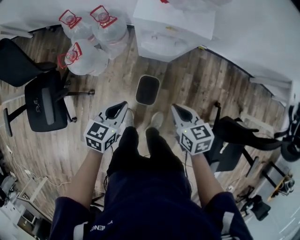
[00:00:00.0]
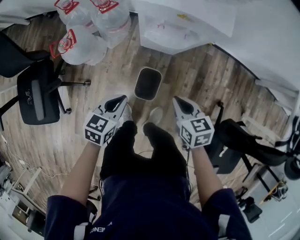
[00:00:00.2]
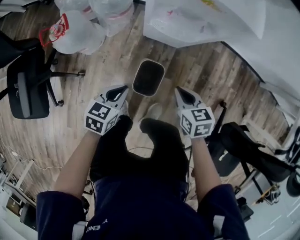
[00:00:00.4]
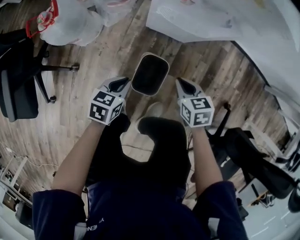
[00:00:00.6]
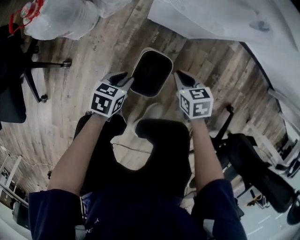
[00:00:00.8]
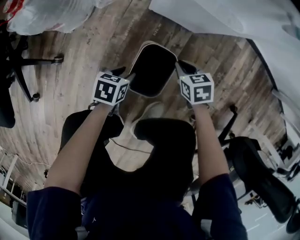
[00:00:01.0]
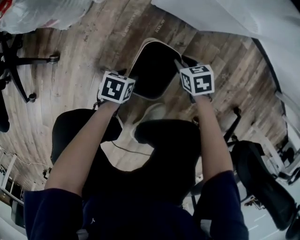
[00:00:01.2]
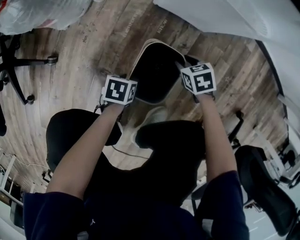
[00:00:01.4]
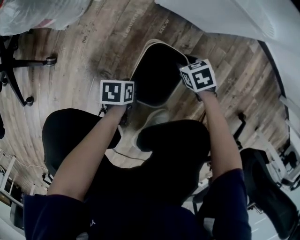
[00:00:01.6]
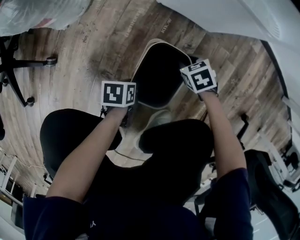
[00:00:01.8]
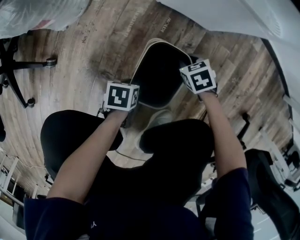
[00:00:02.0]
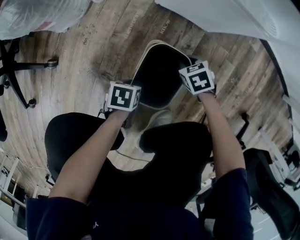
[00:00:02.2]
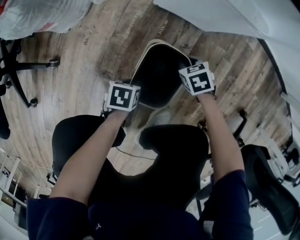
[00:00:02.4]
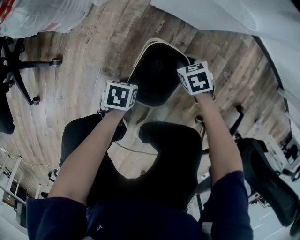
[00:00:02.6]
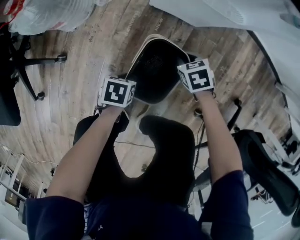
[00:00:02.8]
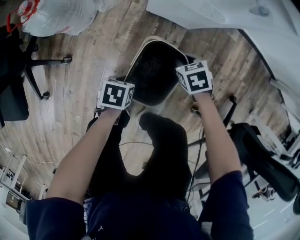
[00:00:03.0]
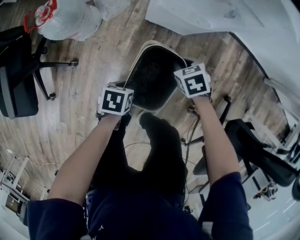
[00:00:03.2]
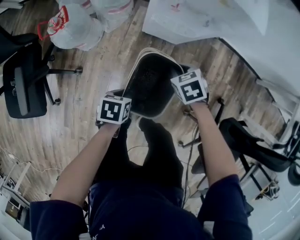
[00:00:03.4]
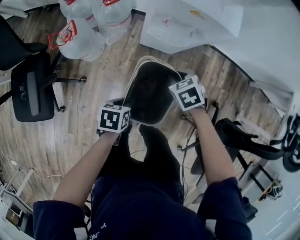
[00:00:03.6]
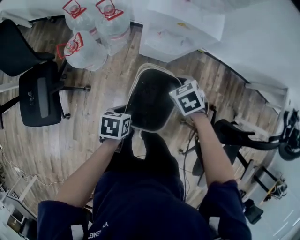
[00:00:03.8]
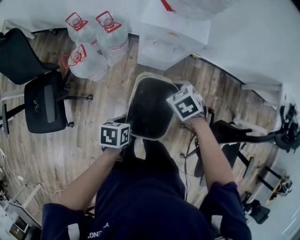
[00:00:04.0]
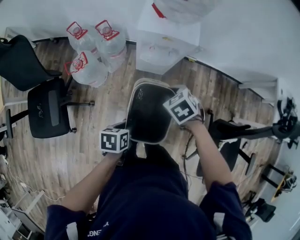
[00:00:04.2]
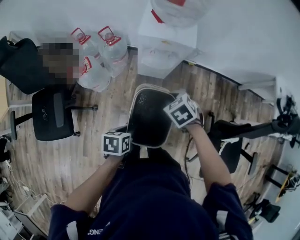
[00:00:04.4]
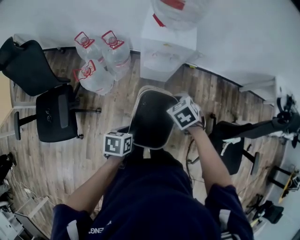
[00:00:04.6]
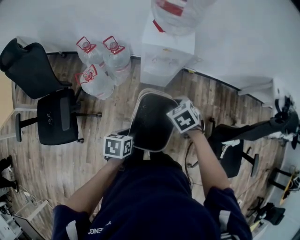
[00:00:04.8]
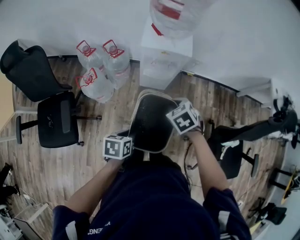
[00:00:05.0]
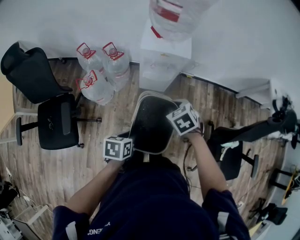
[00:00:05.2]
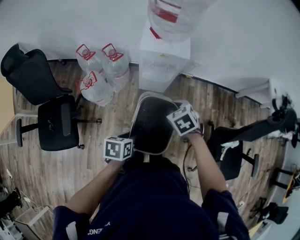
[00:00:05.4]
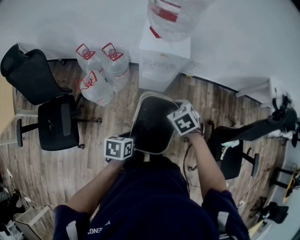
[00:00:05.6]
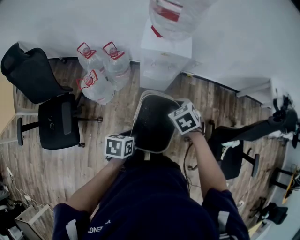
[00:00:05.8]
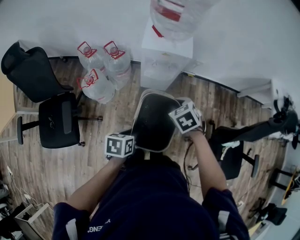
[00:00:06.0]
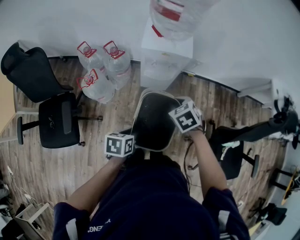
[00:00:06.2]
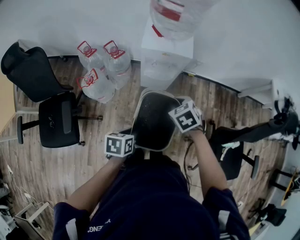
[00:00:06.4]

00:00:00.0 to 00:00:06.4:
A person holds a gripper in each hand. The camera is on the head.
00:00:00.0 to 00:00:01.6: The grippers both shift downward by approximately 60 cm. The right gripper swivels about 40 degrees, and opens up; the left gripper changes its angle by roughly 50 degrees, and opens up.
00:00:01.6 to 00:00:03.2: The grippers both shift upward by about 30 cm. The left gripper closes, while the right gripper closes.
00:00:03.2 to 00:00:04.8: The two grippers go some 40 cm upward.
00:00:04.8 to 00:00:06.4: There are only small adjustments of the grippers.

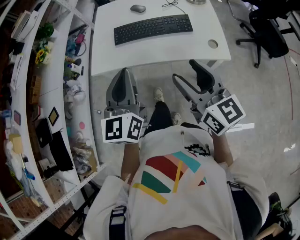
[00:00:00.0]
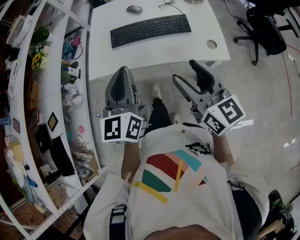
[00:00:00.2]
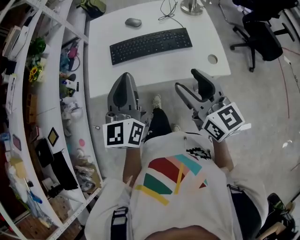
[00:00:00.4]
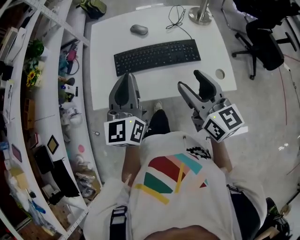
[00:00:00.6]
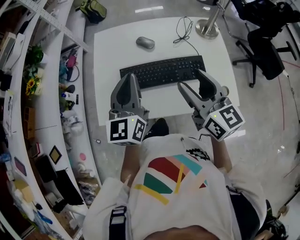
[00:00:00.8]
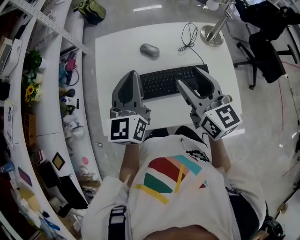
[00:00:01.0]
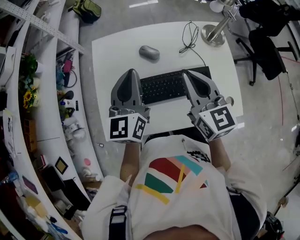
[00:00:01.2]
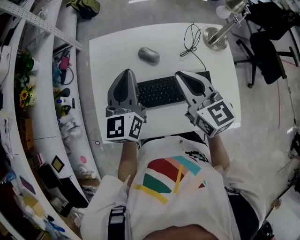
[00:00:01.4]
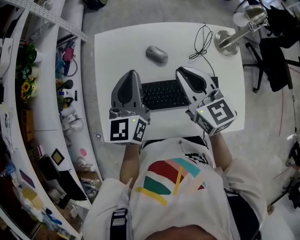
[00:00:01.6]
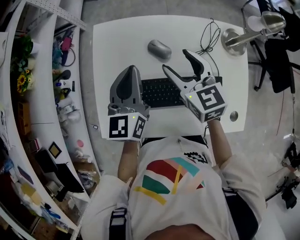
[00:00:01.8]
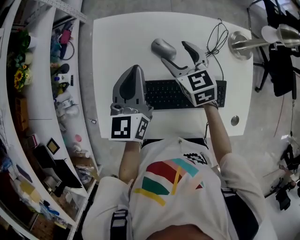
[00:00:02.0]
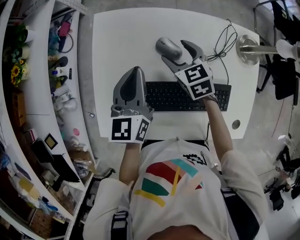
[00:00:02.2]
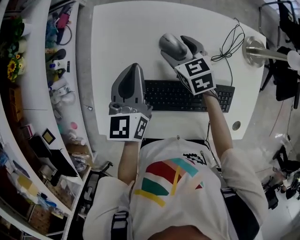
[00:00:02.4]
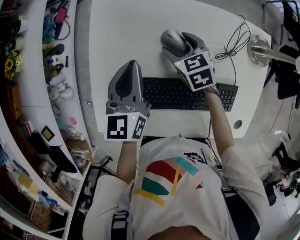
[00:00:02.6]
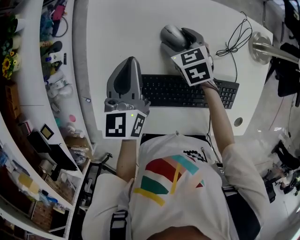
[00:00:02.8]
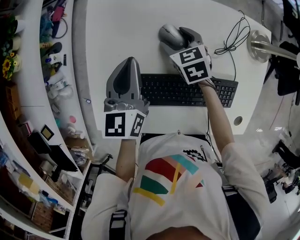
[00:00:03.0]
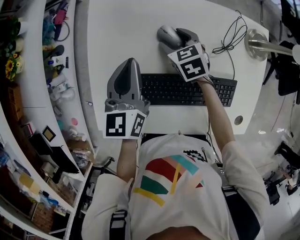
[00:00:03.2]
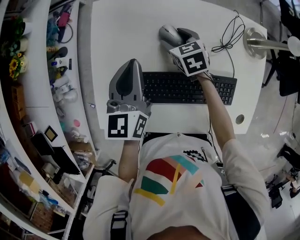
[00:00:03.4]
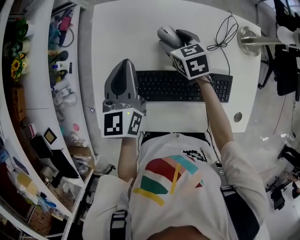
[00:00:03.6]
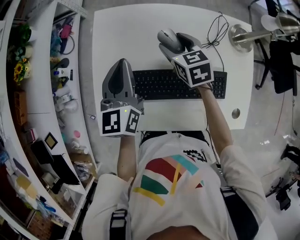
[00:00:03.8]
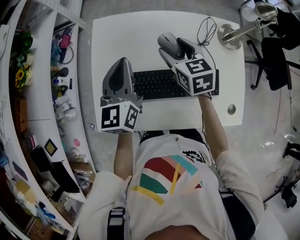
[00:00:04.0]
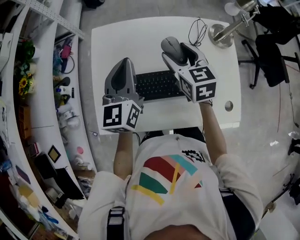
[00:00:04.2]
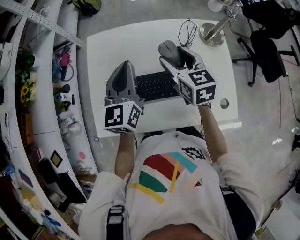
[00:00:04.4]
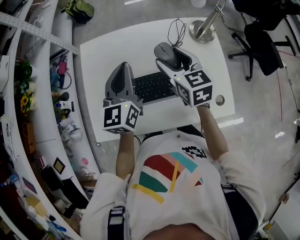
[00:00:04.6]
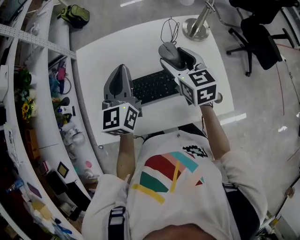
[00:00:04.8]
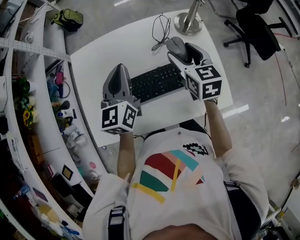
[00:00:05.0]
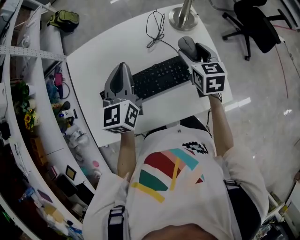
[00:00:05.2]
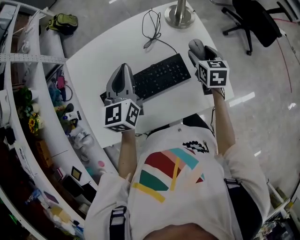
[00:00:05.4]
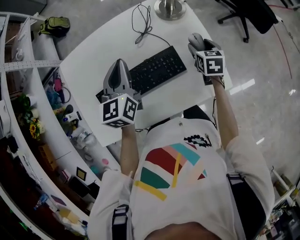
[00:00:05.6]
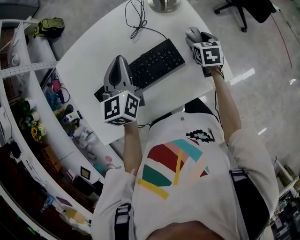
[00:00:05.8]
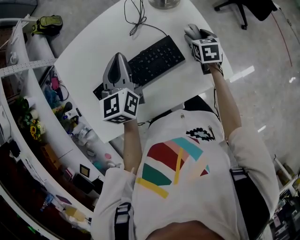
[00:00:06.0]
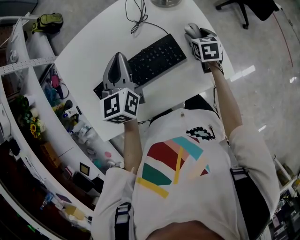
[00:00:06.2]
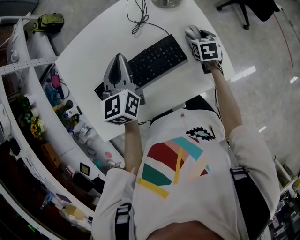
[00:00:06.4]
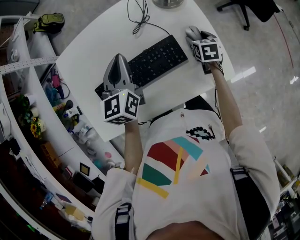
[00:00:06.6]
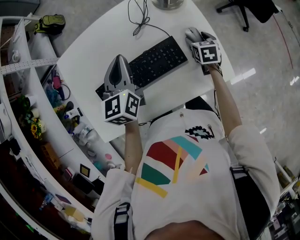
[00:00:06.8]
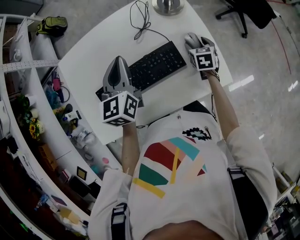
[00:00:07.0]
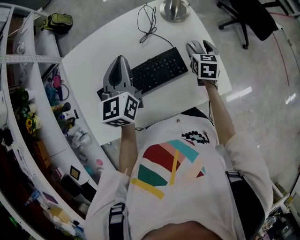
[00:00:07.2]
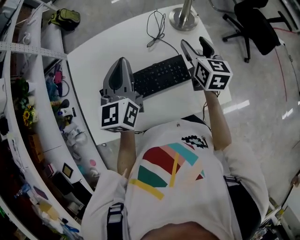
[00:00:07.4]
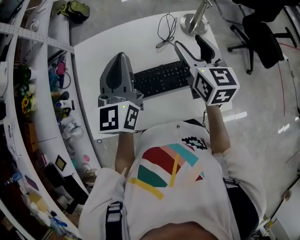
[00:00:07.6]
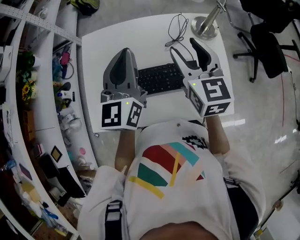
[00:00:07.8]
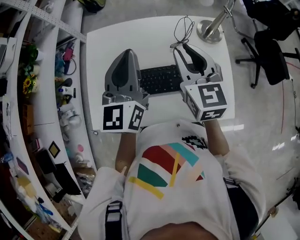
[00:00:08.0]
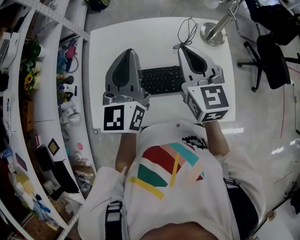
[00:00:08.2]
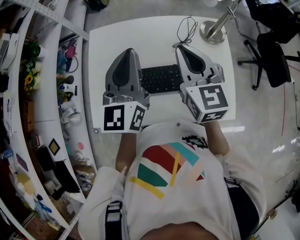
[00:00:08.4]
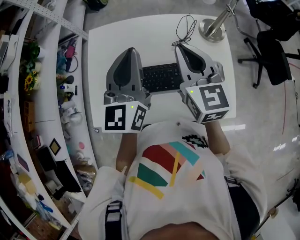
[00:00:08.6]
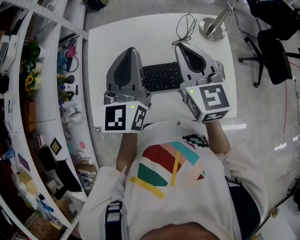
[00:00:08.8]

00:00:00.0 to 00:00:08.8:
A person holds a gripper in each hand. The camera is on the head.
00:00:00.0 to 00:00:01.4: The pair of grippers is taken forward, some 40 cm. The right gripper closes.
00:00:01.4 to 00:00:03.0: The left gripper goes roughly 15 cm downward and forward, while the right gripper moves downward and forward, approximately 35 cm, angles its fingers downward, by roughly 30 degrees, and opens up.
00:00:03.0 to 00:00:04.4: The right gripper shifts approximately 25 cm upward and backward, and swivels about 30 degrees. The left gripper heads upward, backward and to the right, covering approximately 15 cm.
00:00:04.4 to 00:00:05.8: The left gripper travels to the right by some 15 cm; the right gripper heads to the right and downward, covering approximately 35 cm, and swivels some 40 degrees.
00:00:05.8 to 00:00:07.4: The right gripper goes roughly 20 cm upward and to the left, and turns by about 30 degrees; the left gripper travels upward by approximately 5 cm.
00:00:07.4 to 00:00:08.8: The right gripper goes about 20 cm to the left and upward, rotates some 30 degrees, and closes its fingers. The left gripper travels upward and to the left by roughly 10 cm.

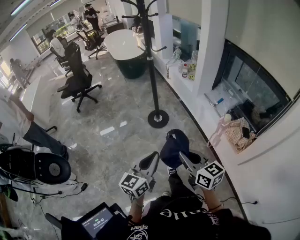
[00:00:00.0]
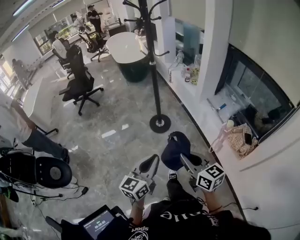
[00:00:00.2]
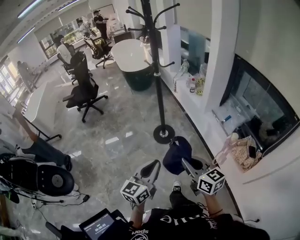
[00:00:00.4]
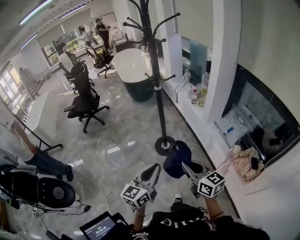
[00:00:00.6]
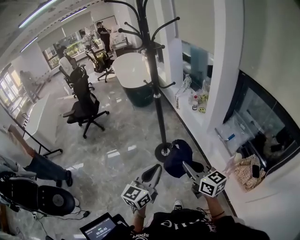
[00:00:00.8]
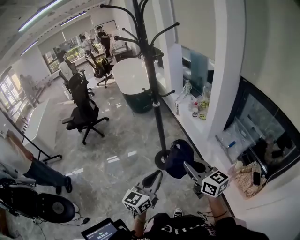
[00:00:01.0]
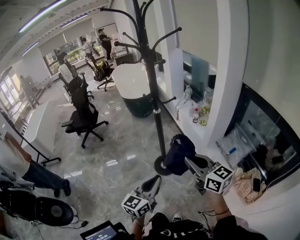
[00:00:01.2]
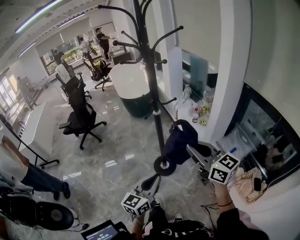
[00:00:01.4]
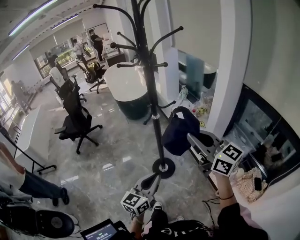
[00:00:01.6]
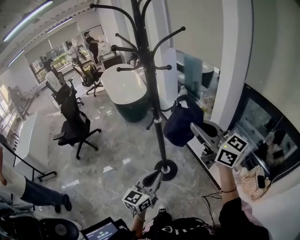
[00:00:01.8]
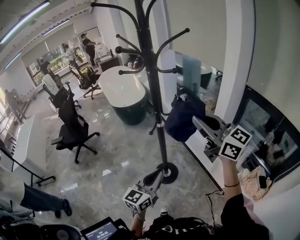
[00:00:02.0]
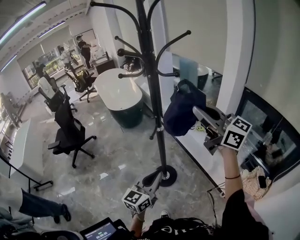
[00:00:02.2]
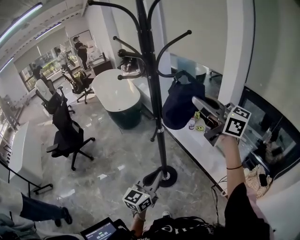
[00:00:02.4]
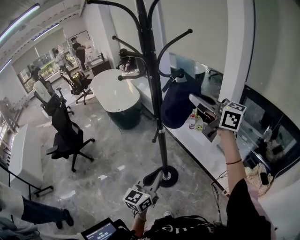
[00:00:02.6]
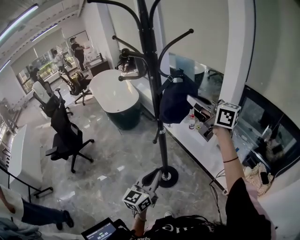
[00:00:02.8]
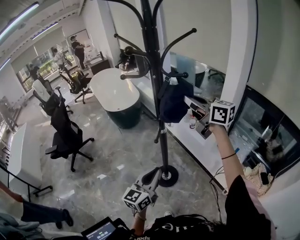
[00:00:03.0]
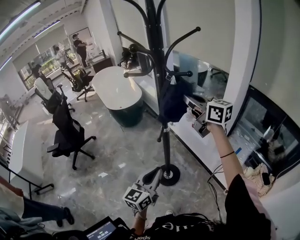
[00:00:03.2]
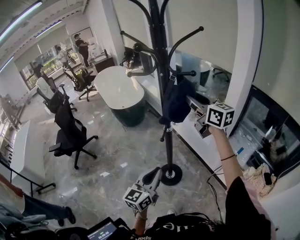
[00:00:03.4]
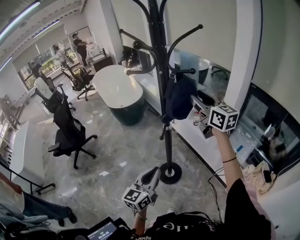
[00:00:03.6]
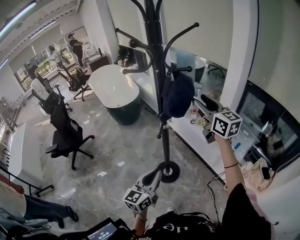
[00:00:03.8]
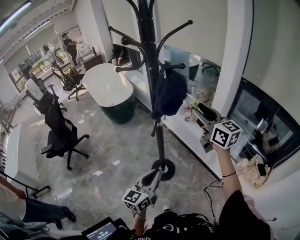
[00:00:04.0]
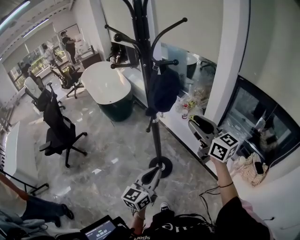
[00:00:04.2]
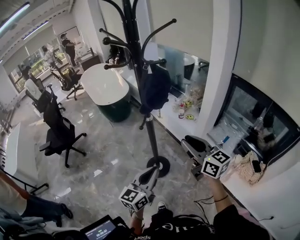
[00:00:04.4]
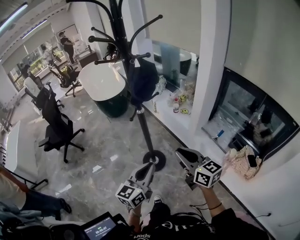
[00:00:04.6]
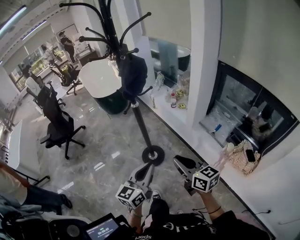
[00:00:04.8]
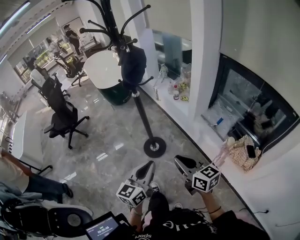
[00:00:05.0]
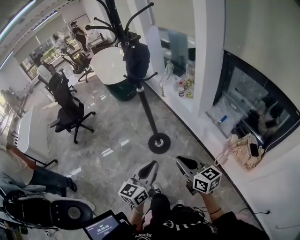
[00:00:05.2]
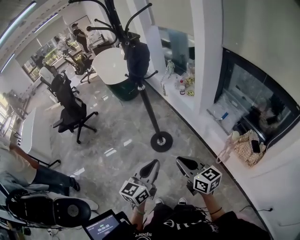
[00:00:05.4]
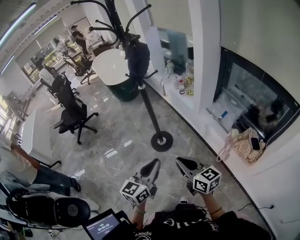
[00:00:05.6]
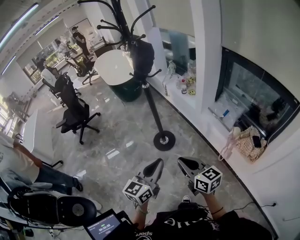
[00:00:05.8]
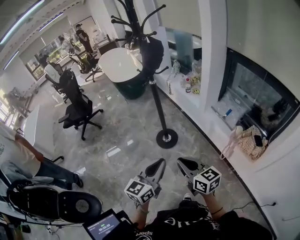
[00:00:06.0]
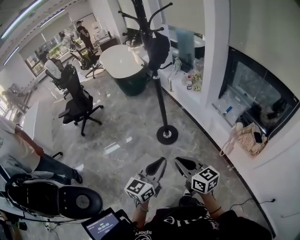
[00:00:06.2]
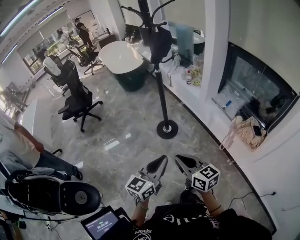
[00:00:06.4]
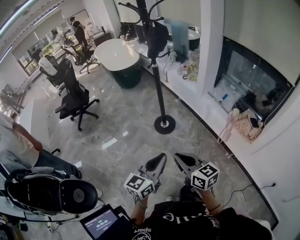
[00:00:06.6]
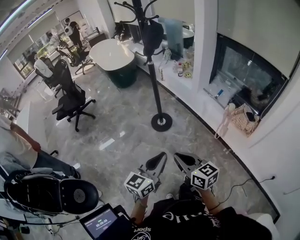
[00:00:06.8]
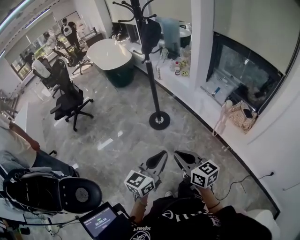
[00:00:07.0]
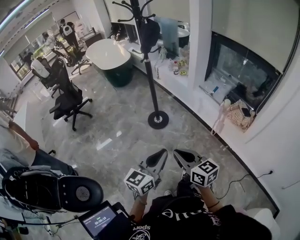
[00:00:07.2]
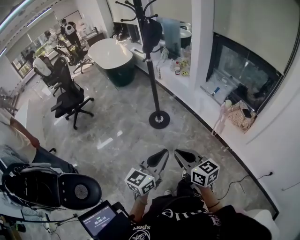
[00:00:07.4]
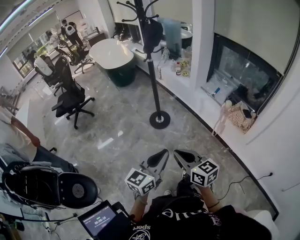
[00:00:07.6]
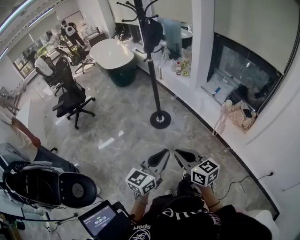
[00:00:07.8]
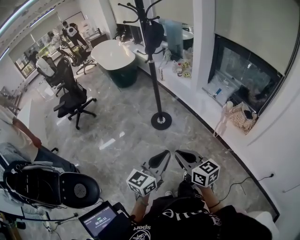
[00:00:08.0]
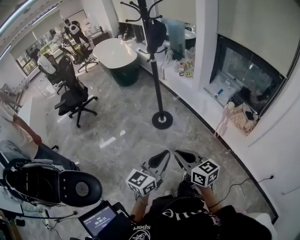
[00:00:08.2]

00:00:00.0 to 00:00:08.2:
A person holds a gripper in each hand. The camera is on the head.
00:00:00.0 to 00:00:01.6: The right gripper is displaced forward and upward by about 50 cm, and turns by roughly 20 degrees. The left gripper heads forward, covering some 35 cm.
00:00:01.6 to 00:00:03.2: The right gripper travels forward by approximately 25 cm. The left gripper shifts roughly 20 cm forward and to the left.
00:00:03.2 to 00:00:05.0: The right gripper moves backward and downward, some 50 cm, and opens, then closes once more; the left gripper goes roughly 25 cm backward and to the right.
00:00:05.0 to 00:00:06.6: The two grippers go roughly 30 cm backward and to the left.
00:00:06.6 to 00:00:08.2: Both grippers travel together backward, approximately 10 cm.
